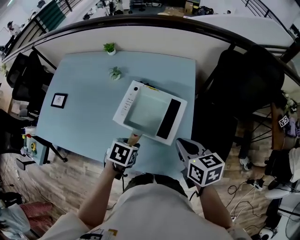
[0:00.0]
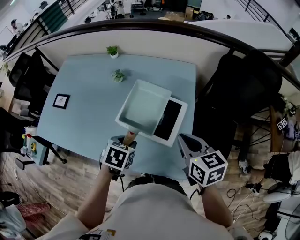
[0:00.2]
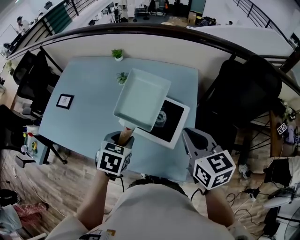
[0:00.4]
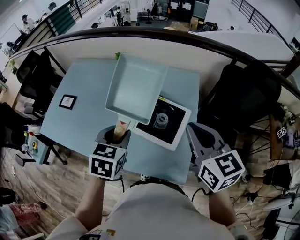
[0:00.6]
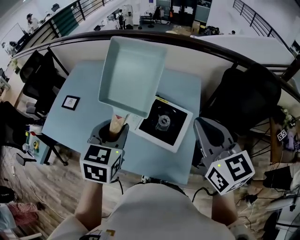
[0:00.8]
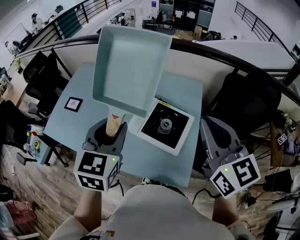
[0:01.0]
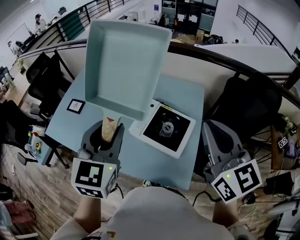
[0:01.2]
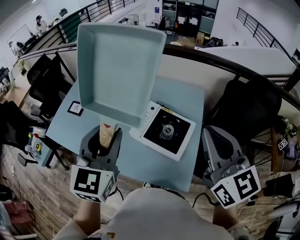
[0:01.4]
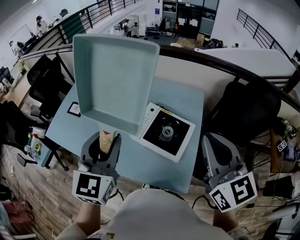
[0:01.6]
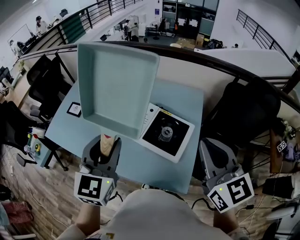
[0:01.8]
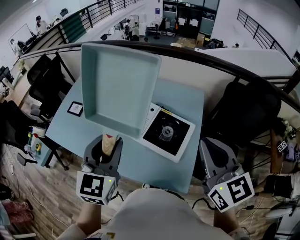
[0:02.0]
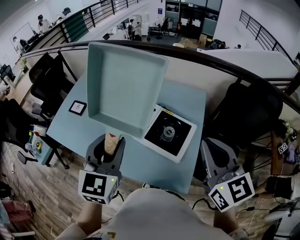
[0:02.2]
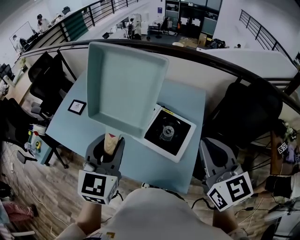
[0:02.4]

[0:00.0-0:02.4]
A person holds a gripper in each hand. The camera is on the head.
0:00.0 to 0:01.2: Both grippers move upward, some 30 cm. The right gripper rotates roughly 40 degrees; the left gripper angles its fingers upward, by some 50 degrees.
0:01.2 to 0:02.4: There are only small adjustments of the grippers.

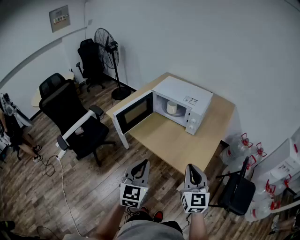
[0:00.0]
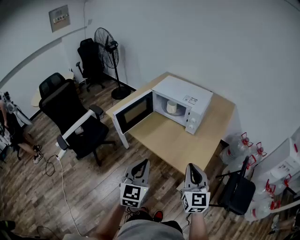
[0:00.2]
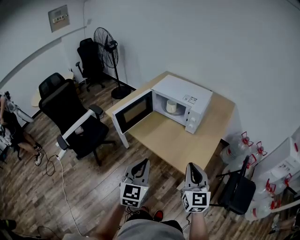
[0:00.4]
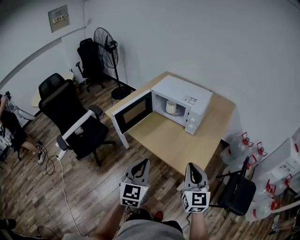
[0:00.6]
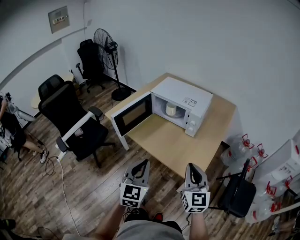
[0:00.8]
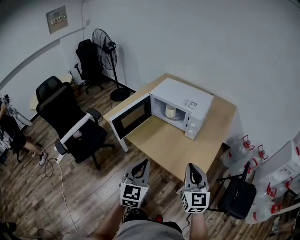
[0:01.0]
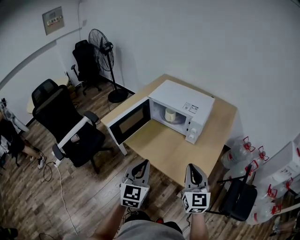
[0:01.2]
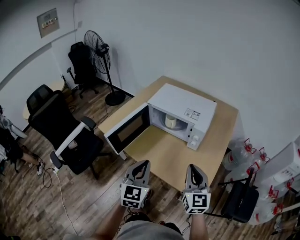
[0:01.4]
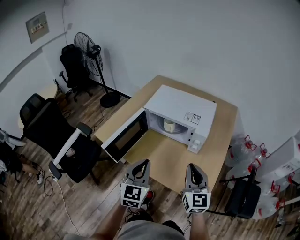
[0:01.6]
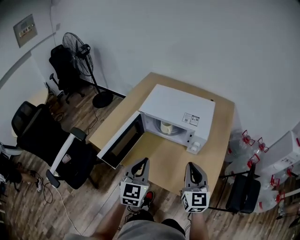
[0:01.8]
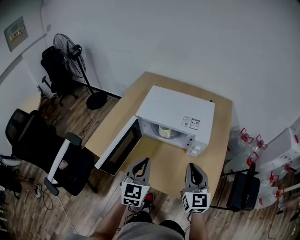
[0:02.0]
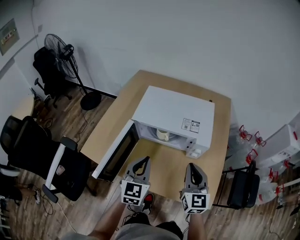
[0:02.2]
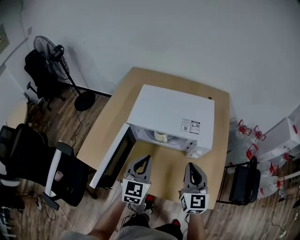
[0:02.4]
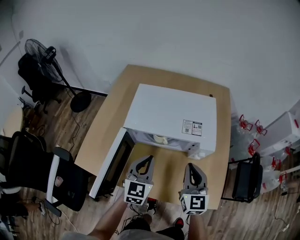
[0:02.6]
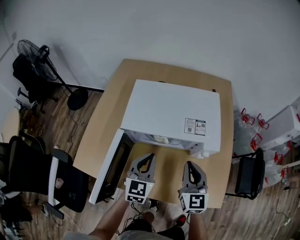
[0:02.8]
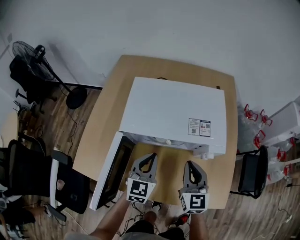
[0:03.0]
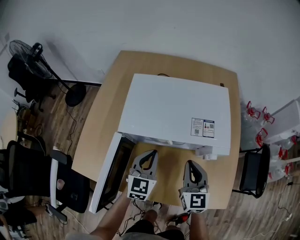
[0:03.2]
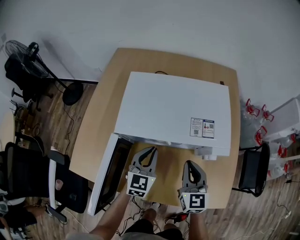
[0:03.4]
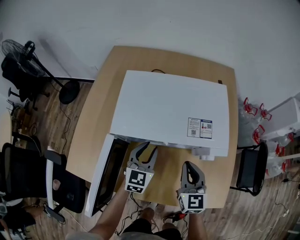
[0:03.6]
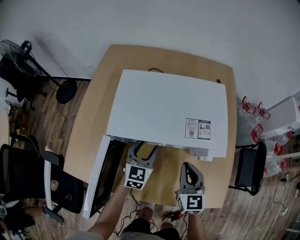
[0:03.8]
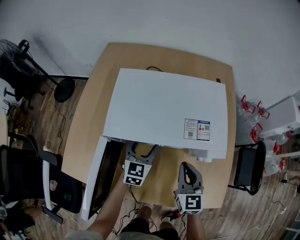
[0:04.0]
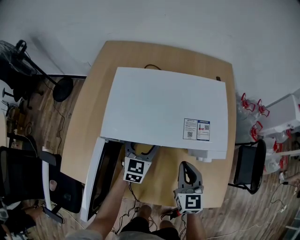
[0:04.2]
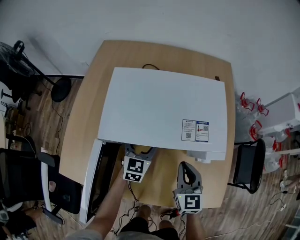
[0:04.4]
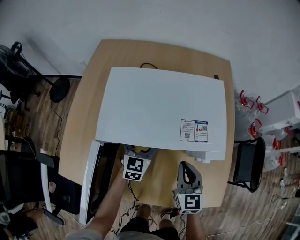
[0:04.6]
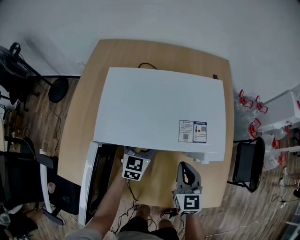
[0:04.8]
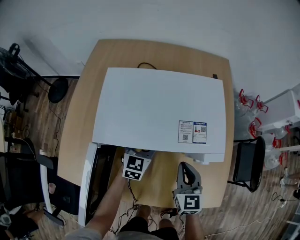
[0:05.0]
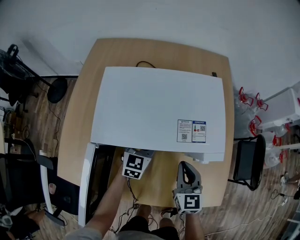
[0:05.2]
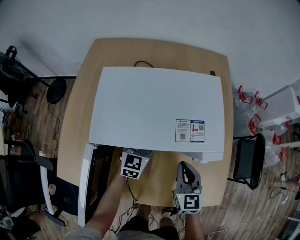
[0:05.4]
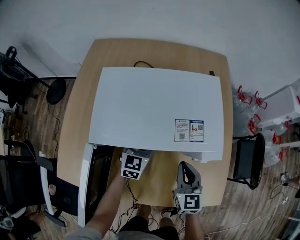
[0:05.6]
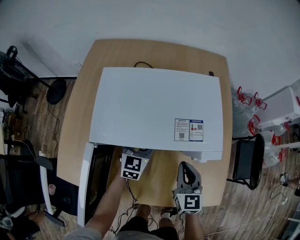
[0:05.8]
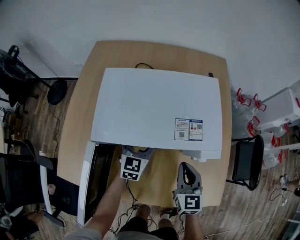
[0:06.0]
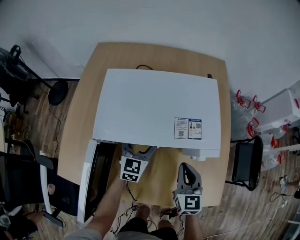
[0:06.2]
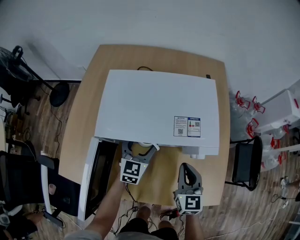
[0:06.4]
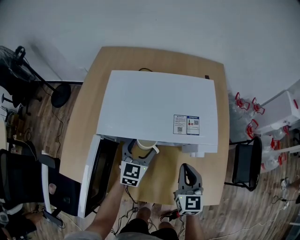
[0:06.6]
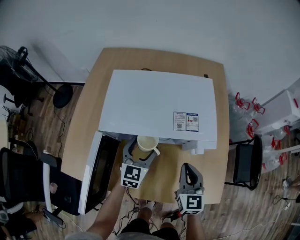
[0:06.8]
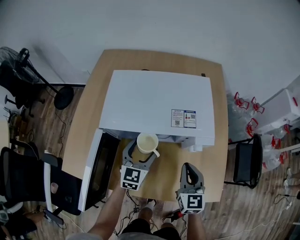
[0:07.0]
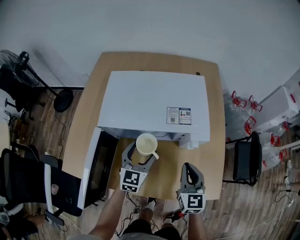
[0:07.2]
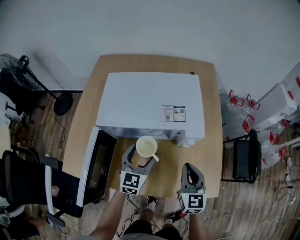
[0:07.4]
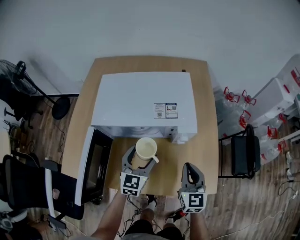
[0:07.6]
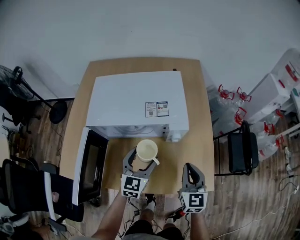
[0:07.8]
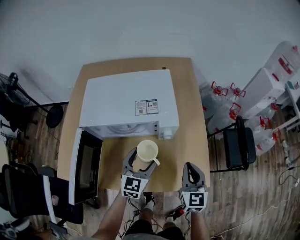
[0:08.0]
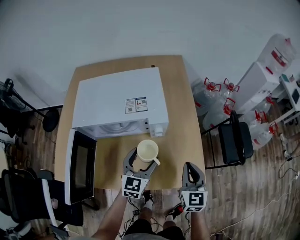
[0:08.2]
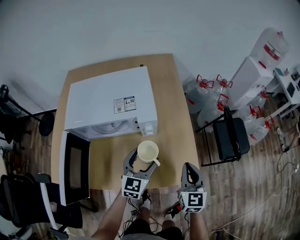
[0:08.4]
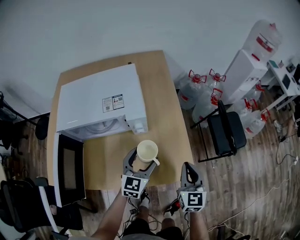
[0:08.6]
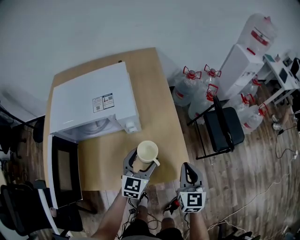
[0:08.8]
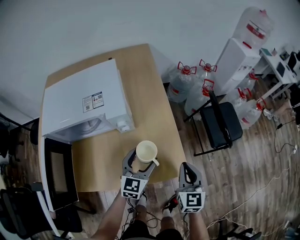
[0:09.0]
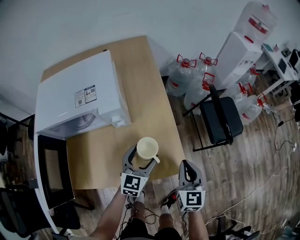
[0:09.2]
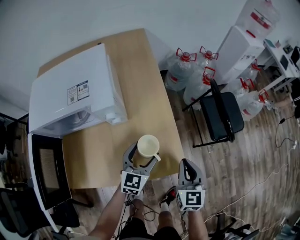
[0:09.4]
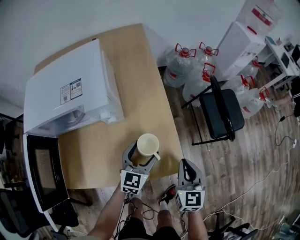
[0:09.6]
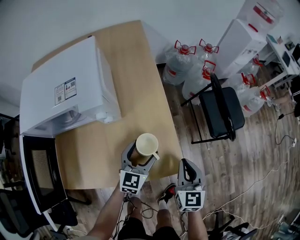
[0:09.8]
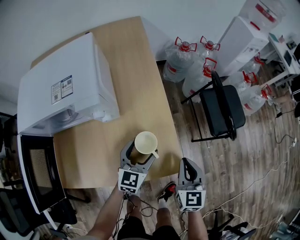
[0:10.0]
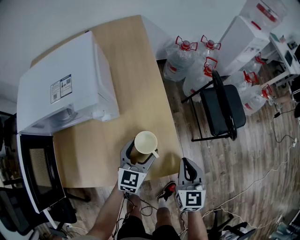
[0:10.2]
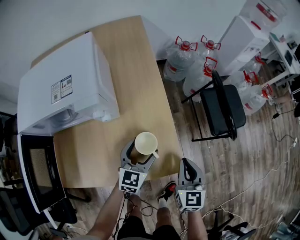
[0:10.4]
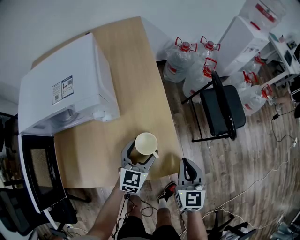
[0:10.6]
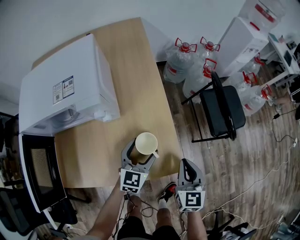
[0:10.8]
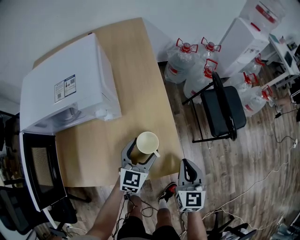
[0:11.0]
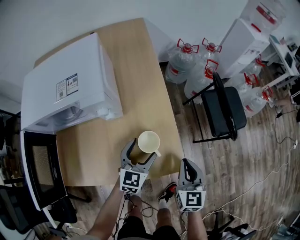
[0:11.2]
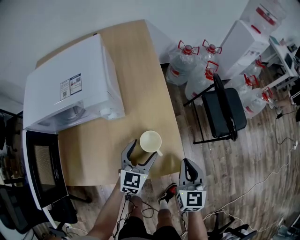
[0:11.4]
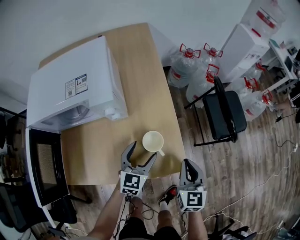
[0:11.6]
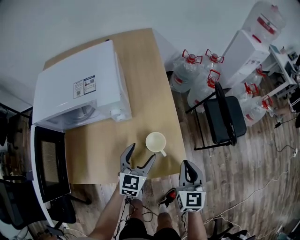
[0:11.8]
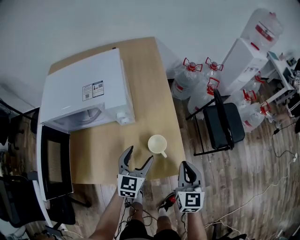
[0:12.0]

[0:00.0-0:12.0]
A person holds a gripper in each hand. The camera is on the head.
0:00.0 to 0:01.6: The two grippers go some 20 cm forward.
0:01.6 to 0:03.0: The left gripper moves forward and downward, roughly 30 cm, and swivels roughly 20 degrees. The right gripper heads forward, downward and to the left, covering roughly 25 cm.
0:03.0 to 0:04.4: The left gripper is displaced forward and downward by approximately 15 cm, and opens its fingers. The right gripper moves downward, some 5 cm.
0:04.4 to 0:06.0: The grippers move only a little.
0:06.0 to 0:07.6: The left gripper heads backward, to the right and upward, covering some 15 cm; the right gripper travels backward and to the right by roughly 10 cm.
0:07.6 to 0:09.0: The grippers both shift to the right by roughly 25 cm.
0:09.0 to 0:10.4: Both grippers move downward, some 10 cm.
0:10.4 to 0:12.0: The left gripper heads upward and to the left, covering about 10 cm, while the right gripper goes some 5 cm upward.

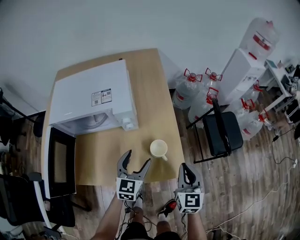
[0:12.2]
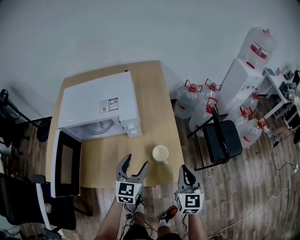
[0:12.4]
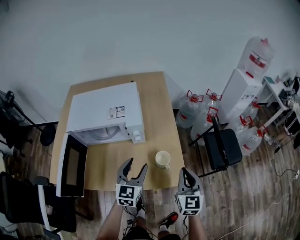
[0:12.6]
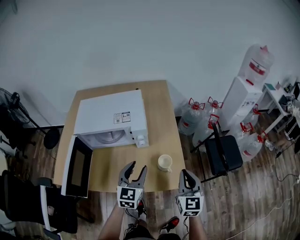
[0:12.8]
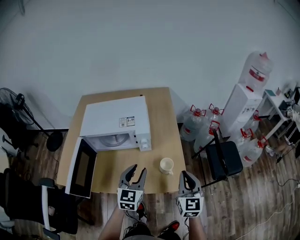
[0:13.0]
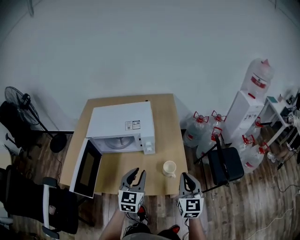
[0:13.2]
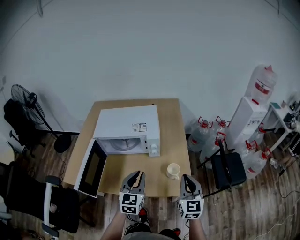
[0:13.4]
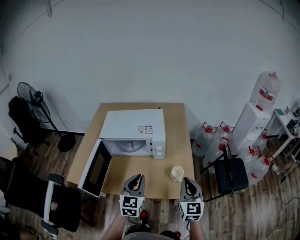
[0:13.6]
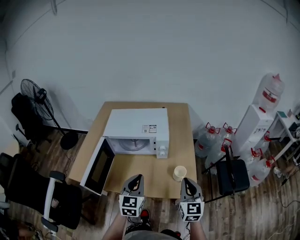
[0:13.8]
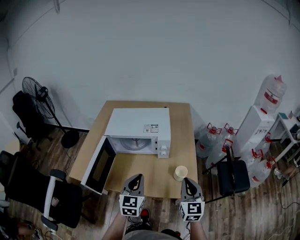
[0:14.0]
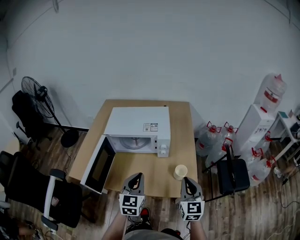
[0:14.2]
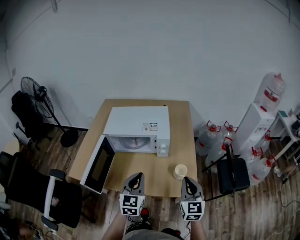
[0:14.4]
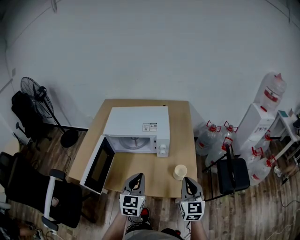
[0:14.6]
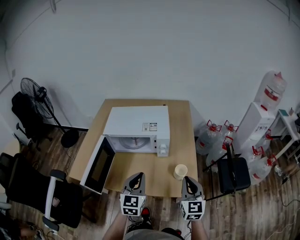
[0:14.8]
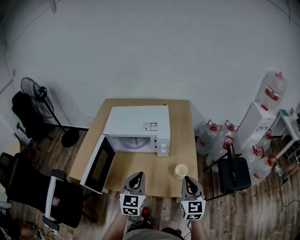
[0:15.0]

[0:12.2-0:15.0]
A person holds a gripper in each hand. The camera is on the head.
0:12.2 to 0:13.6: The right gripper heads upward and to the left, covering approximately 15 cm, while the left gripper heads upward, backward and to the left, covering about 20 cm, and closes.
0:13.6 to 0:15.0: The grippers stay close to where they were, moving slightly.

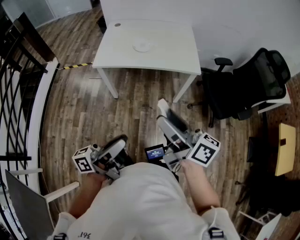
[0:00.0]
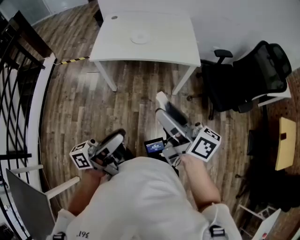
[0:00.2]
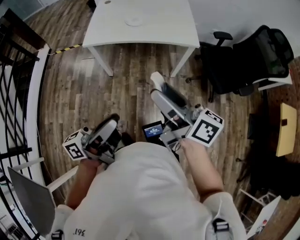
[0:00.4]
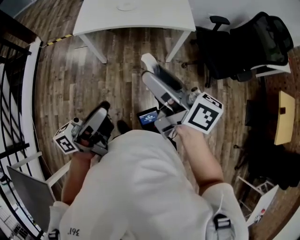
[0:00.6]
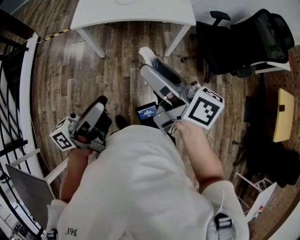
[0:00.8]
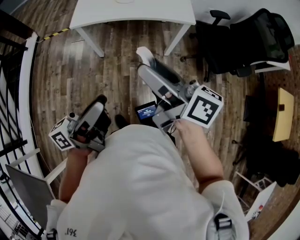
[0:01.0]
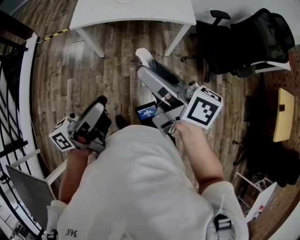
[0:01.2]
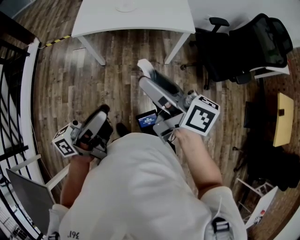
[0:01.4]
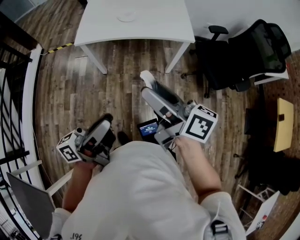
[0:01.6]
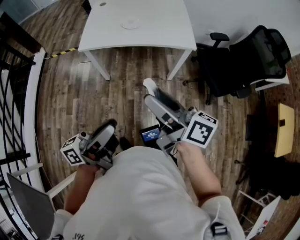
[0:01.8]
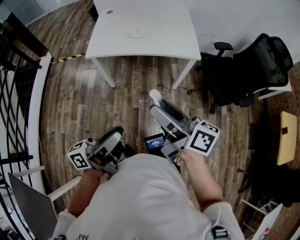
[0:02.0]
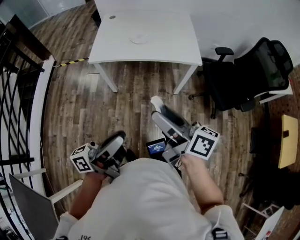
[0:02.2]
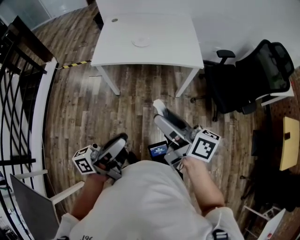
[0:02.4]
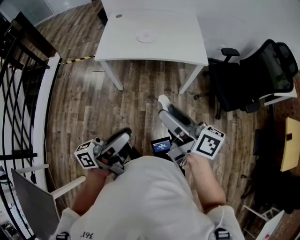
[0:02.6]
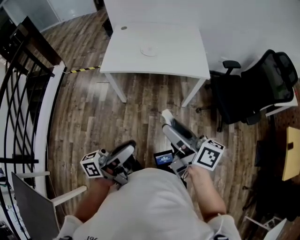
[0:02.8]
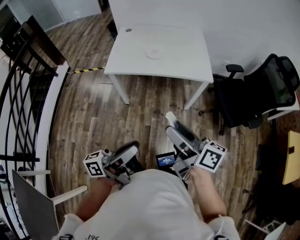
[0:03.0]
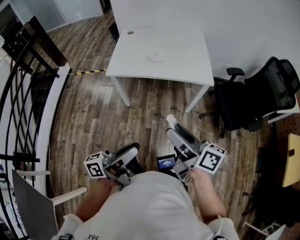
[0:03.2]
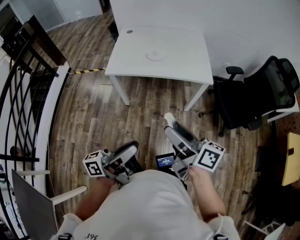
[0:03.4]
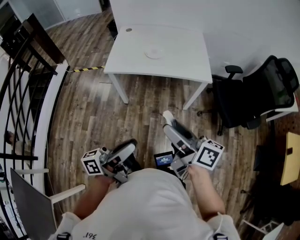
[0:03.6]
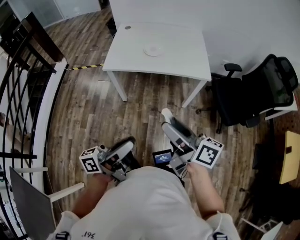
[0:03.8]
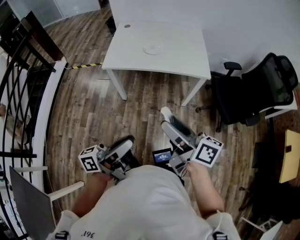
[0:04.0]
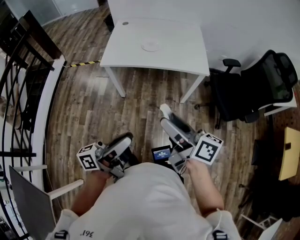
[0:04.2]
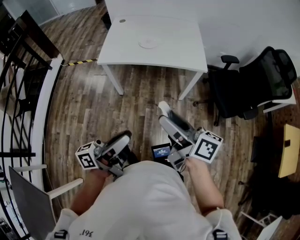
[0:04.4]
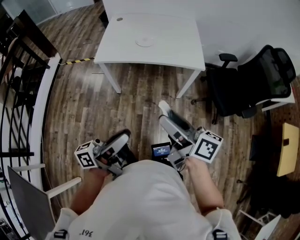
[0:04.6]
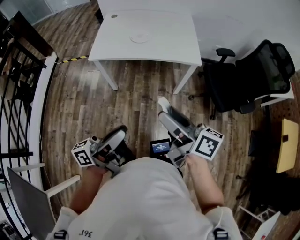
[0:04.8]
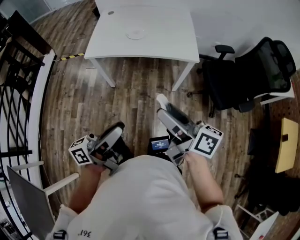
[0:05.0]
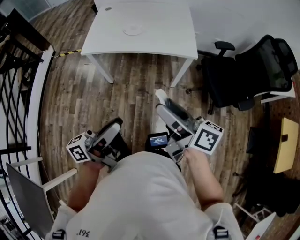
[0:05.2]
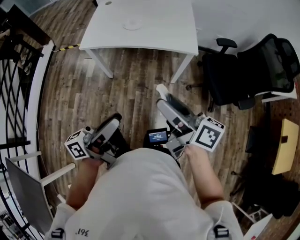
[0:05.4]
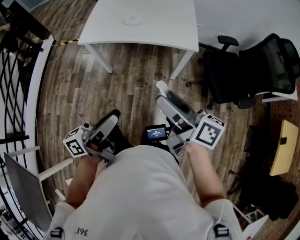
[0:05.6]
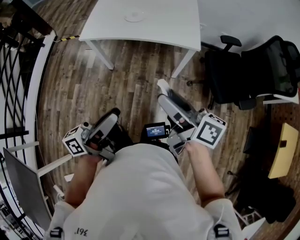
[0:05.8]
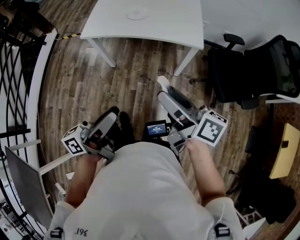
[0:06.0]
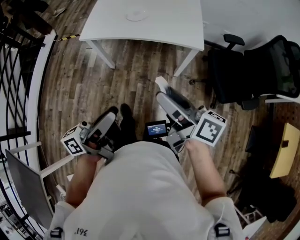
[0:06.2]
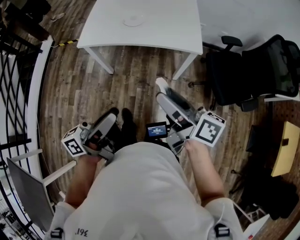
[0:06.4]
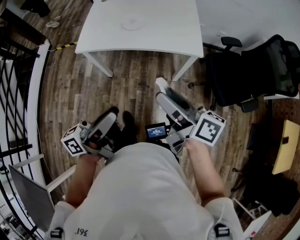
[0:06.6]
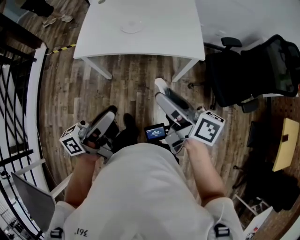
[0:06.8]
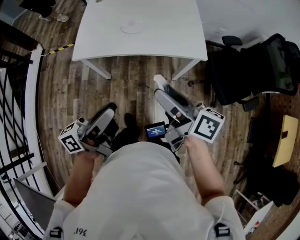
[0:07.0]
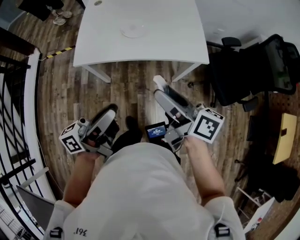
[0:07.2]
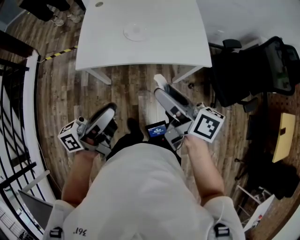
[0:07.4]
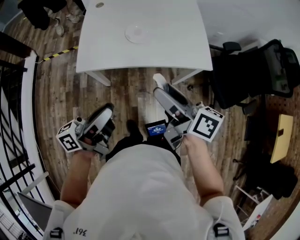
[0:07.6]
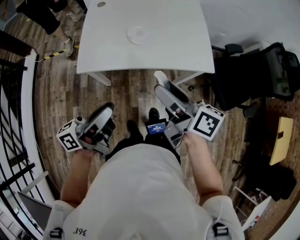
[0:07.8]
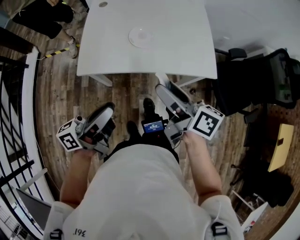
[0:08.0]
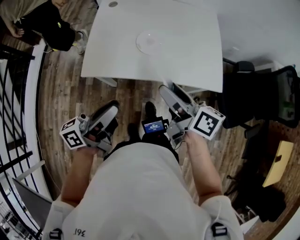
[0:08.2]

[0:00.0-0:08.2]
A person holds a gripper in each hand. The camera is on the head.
0:00.0 to 0:01.6: There are only small adjustments of the grippers.
0:01.6 to 0:03.2: Both grippers stay put.
0:03.2 to 0:05.0: Both grippers move to the right, some 5 cm.
0:05.0 to 0:06.6: Both grippers travel together forward, approximately 10 cm.
0:06.6 to 0:08.2: Both grippers move forward and to the left, some 30 cm.
